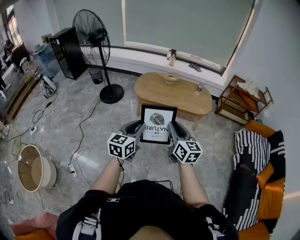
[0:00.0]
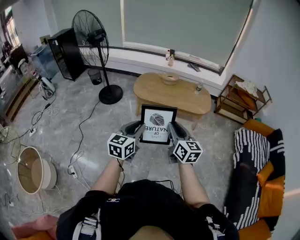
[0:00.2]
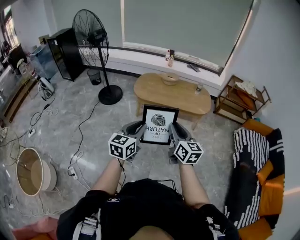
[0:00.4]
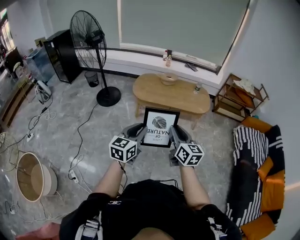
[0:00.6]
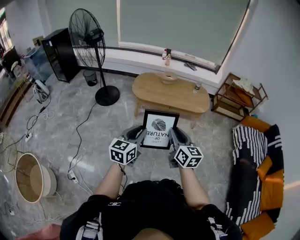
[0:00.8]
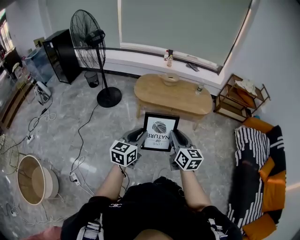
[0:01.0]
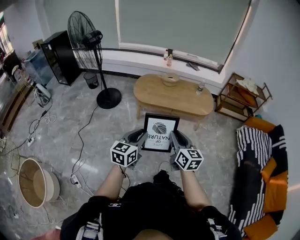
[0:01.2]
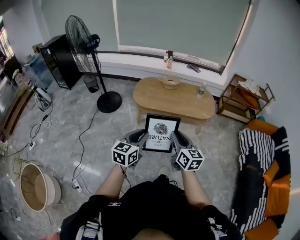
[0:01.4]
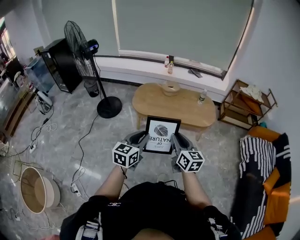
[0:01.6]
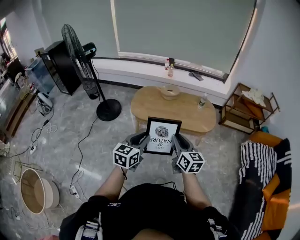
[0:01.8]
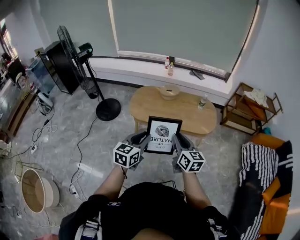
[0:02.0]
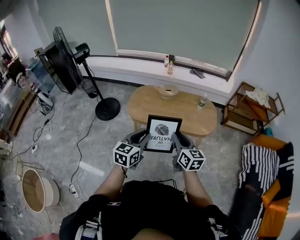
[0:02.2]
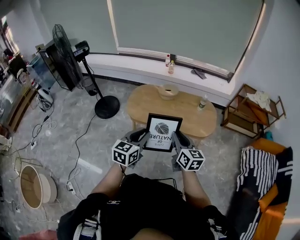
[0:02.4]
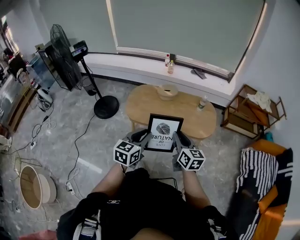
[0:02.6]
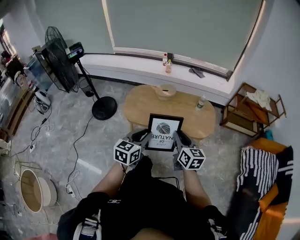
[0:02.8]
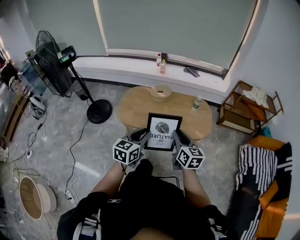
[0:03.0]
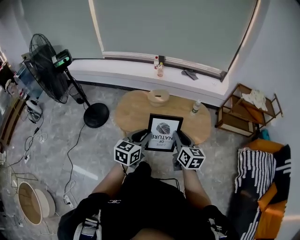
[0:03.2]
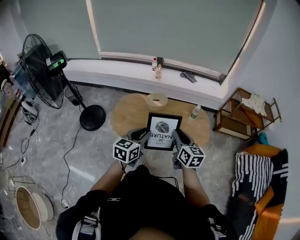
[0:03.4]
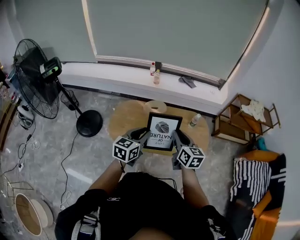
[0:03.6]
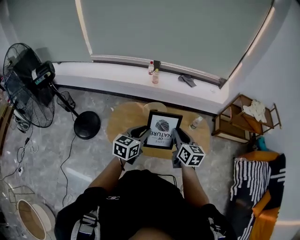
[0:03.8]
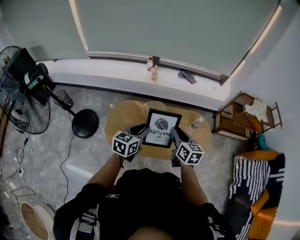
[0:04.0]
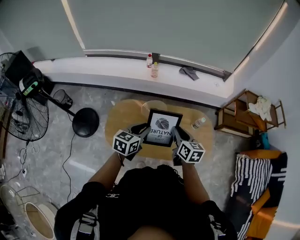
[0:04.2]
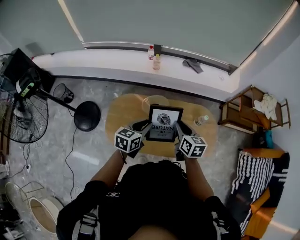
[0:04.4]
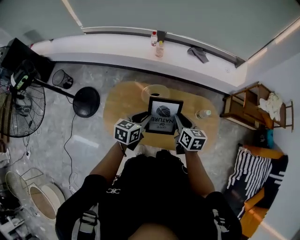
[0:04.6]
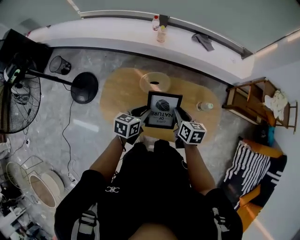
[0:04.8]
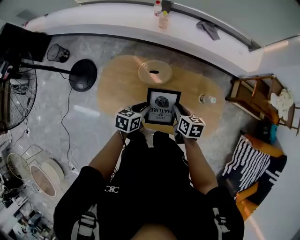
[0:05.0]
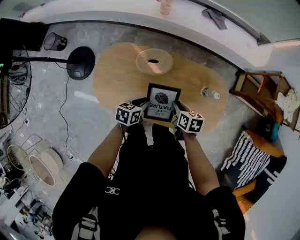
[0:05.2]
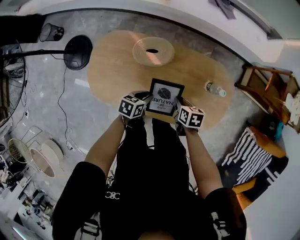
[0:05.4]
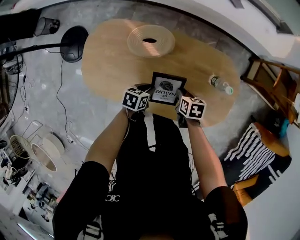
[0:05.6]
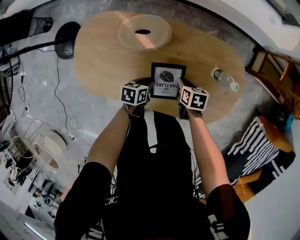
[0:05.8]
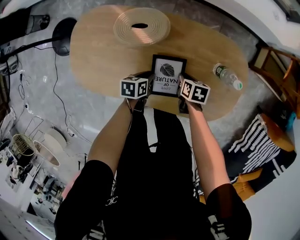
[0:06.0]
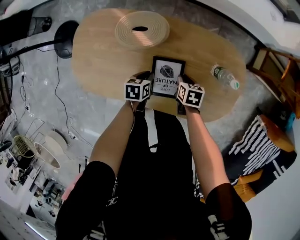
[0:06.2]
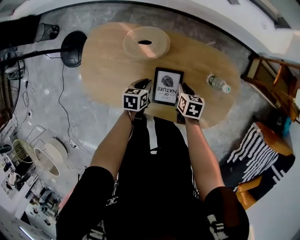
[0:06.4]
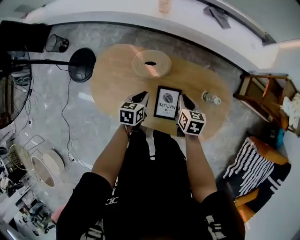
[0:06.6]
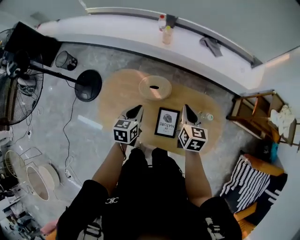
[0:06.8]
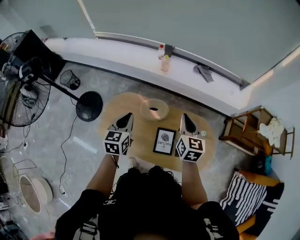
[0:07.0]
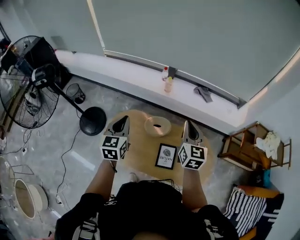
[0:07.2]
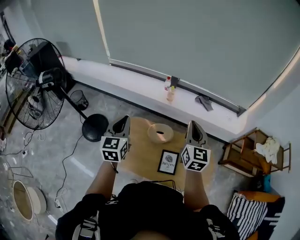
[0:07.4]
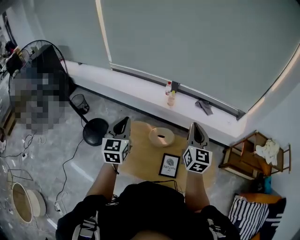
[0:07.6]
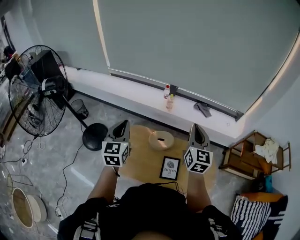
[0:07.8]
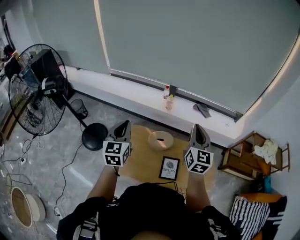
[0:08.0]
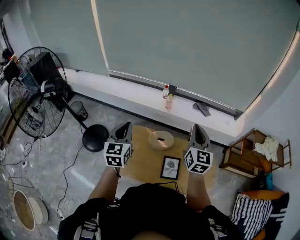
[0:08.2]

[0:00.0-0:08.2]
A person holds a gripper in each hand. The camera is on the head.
0:00.0 to 0:01.6: Both grippers move forward, some 15 cm.
0:01.6 to 0:03.2: The grippers both shift forward and to the right by about 40 cm.
0:03.2 to 0:05.0: Both grippers are carried forward, approximately 50 cm. Both grippers travel together downward, about 25 cm. The left gripper swivels approximately 30 degrees, while the right gripper angles its fingers downward, by approximately 30 degrees.
0:05.0 to 0:06.6: The right gripper goes some 10 cm to the right and forward, and moves roughly 35 cm downward and comes back. The left gripper goes about 5 cm forward, and moves some 35 cm downward and comes back.
0:06.6 to 0:08.2: The right gripper heads upward, covering approximately 50 cm, and points its fingers about 50 degrees further upward. The left gripper moves upward and to the left, approximately 50 cm, and tilts its fingers about 40 degrees upward.

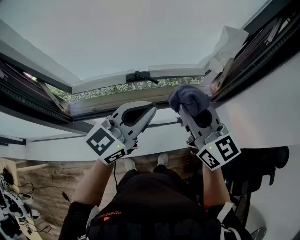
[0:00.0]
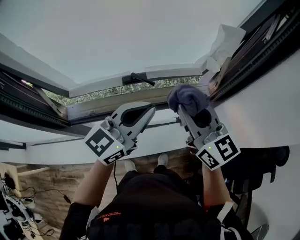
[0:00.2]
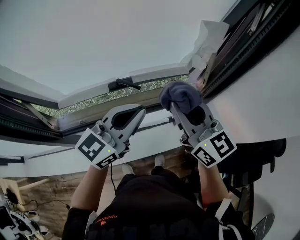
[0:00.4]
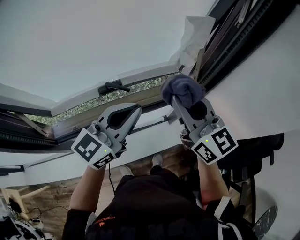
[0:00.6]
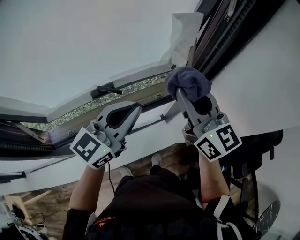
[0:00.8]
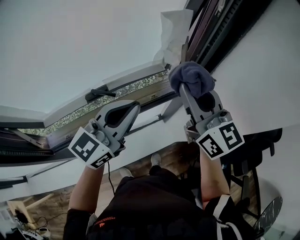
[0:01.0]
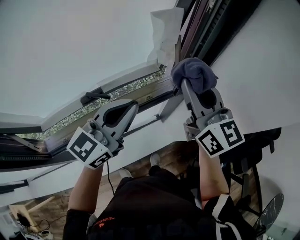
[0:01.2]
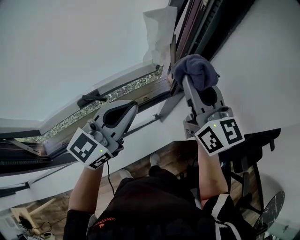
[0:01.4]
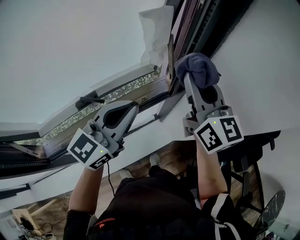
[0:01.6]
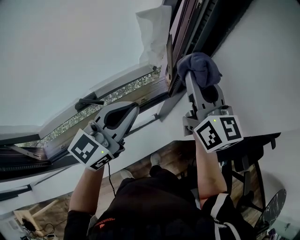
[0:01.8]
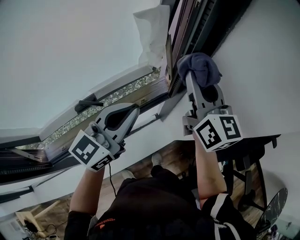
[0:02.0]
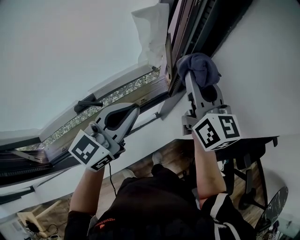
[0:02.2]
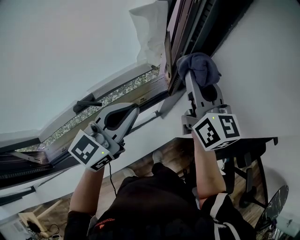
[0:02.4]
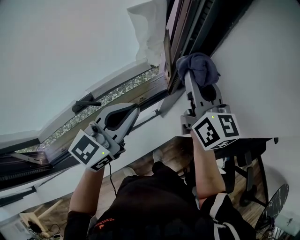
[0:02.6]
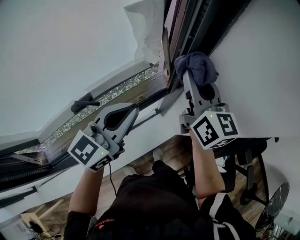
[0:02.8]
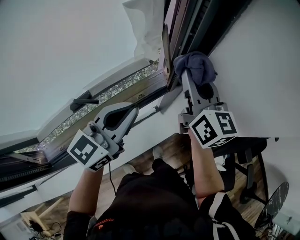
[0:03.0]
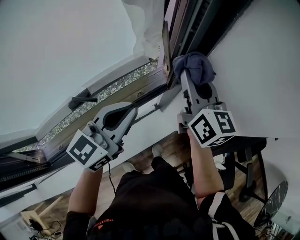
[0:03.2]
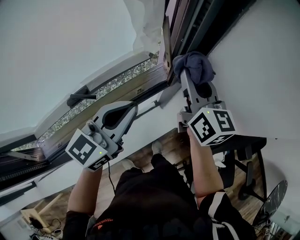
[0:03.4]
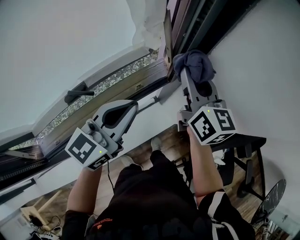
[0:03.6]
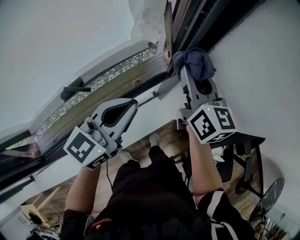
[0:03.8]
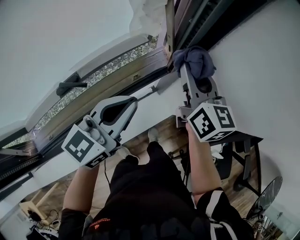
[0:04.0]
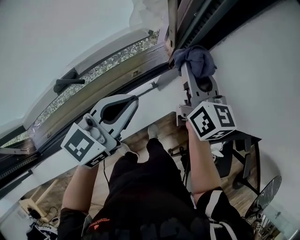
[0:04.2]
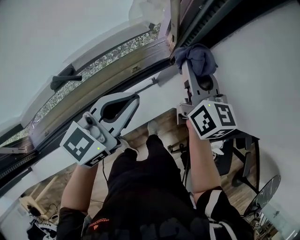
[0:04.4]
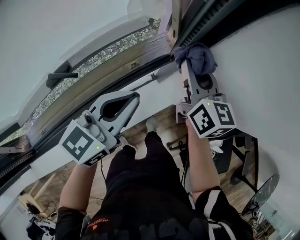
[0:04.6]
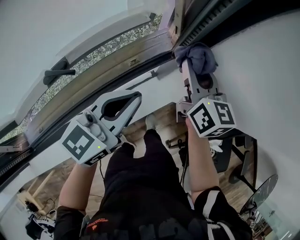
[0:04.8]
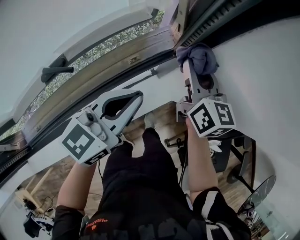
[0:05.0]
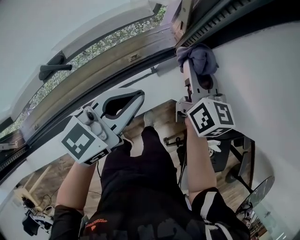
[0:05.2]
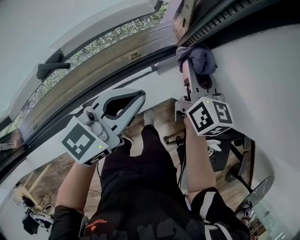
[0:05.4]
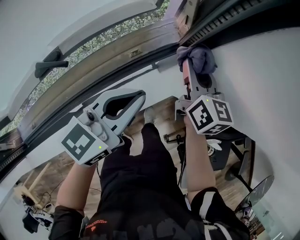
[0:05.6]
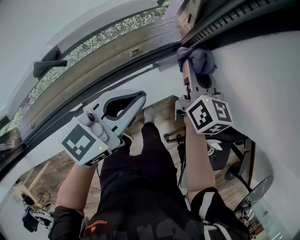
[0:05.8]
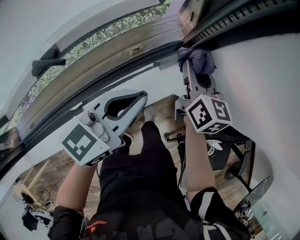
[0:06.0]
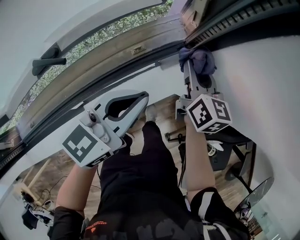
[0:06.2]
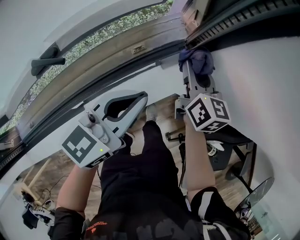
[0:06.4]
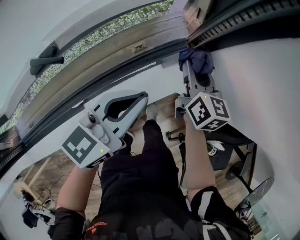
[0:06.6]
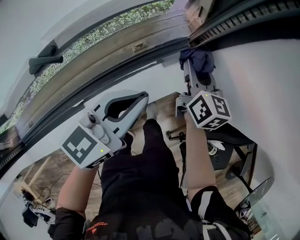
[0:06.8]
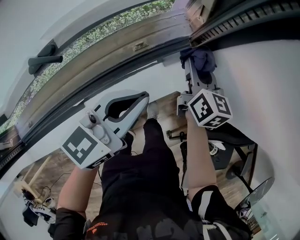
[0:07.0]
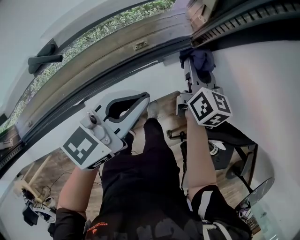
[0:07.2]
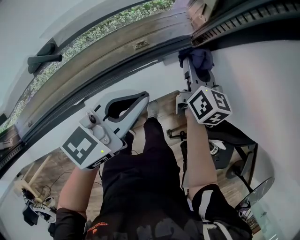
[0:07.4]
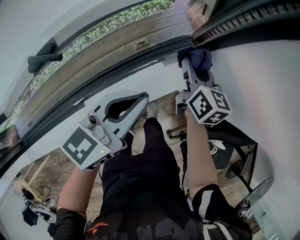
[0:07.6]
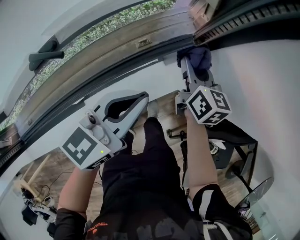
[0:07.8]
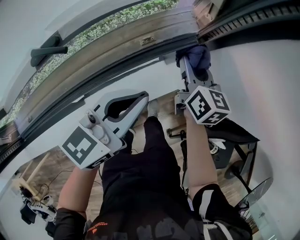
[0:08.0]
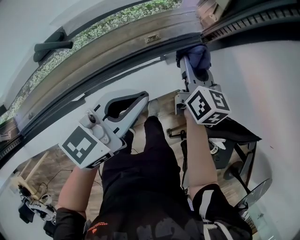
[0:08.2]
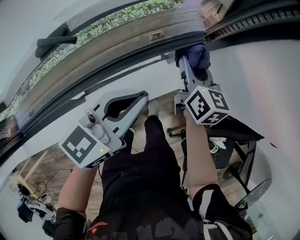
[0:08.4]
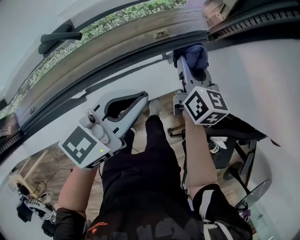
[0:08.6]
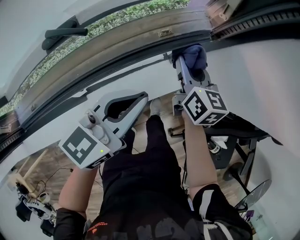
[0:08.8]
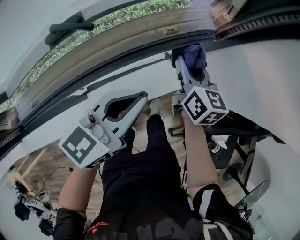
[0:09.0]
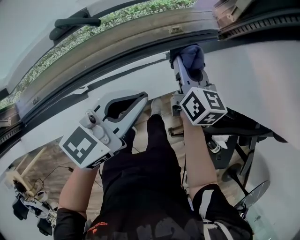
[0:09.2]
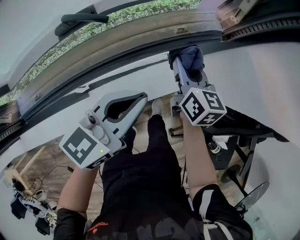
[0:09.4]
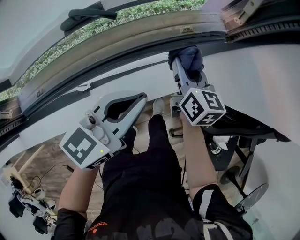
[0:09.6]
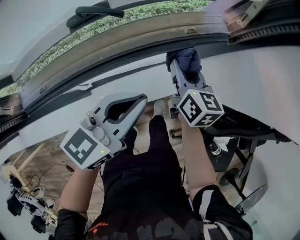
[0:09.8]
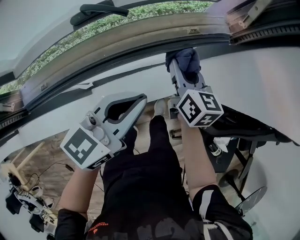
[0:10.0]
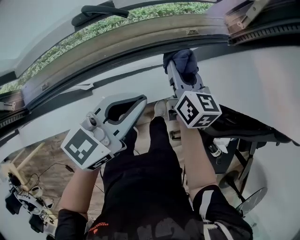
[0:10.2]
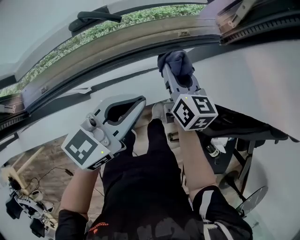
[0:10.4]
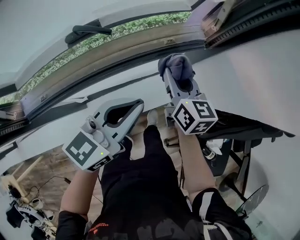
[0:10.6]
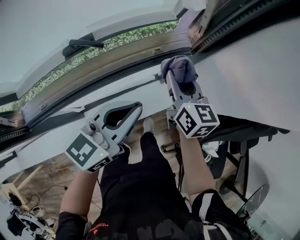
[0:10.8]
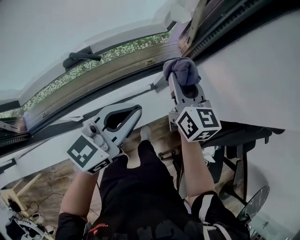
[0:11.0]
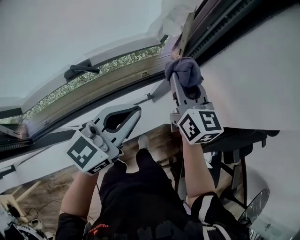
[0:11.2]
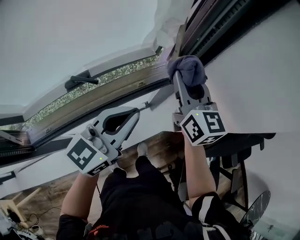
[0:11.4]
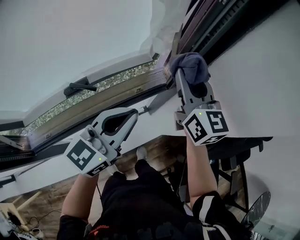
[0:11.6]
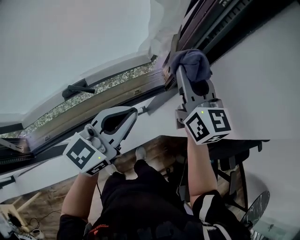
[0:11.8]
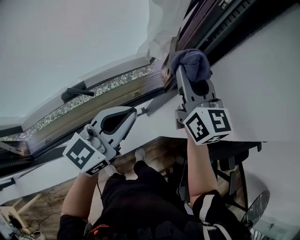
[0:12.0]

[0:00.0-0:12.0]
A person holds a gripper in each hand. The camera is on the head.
0:00.0 to 0:01.6: The grippers both shift to the right and forward by some 20 cm. The right gripper changes its angle by roughly 30 degrees.
0:01.6 to 0:03.0: The right gripper shifts approximately 5 cm downward.
0:03.0 to 0:04.4: Both grippers travel together downward, about 10 cm.
0:04.4 to 0:06.0: The left gripper travels downward by about 10 cm, while the right gripper shifts about 15 cm downward.
0:06.0 to 0:07.6: The right gripper is displaced downward by some 5 cm.
0:07.6 to 0:09.0: The right gripper goes approximately 10 cm to the left and backward. The left gripper is displaced backward and to the left by about 10 cm.
0:09.0 to 0:10.4: The right gripper moves to the left and backward, roughly 10 cm, while the left gripper travels backward by approximately 5 cm.
0:10.4 to 0:12.0: The left gripper goes some 20 cm upward and forward; the right gripper moves upward, approximately 30 cm, and rotates some 30 degrees.

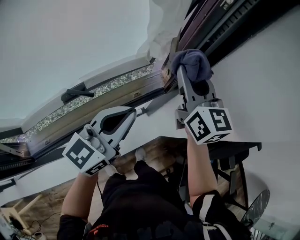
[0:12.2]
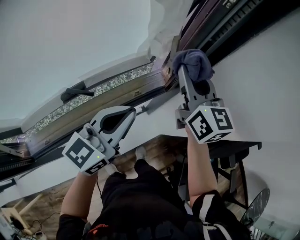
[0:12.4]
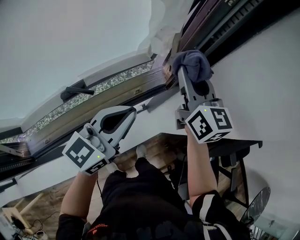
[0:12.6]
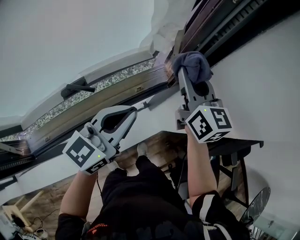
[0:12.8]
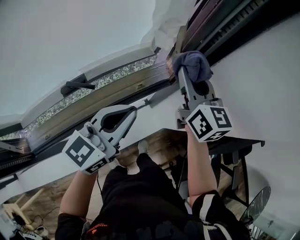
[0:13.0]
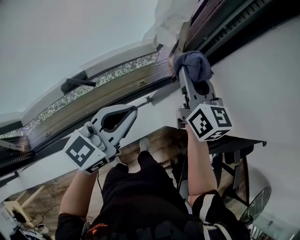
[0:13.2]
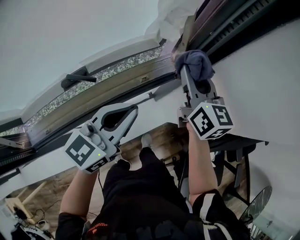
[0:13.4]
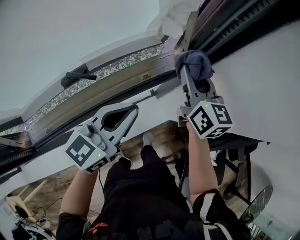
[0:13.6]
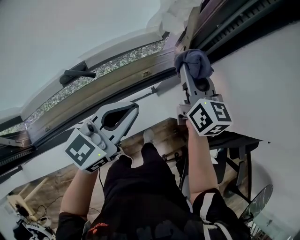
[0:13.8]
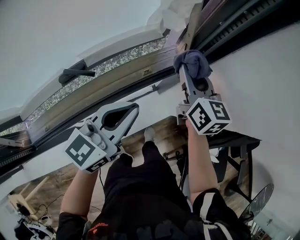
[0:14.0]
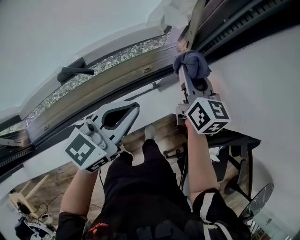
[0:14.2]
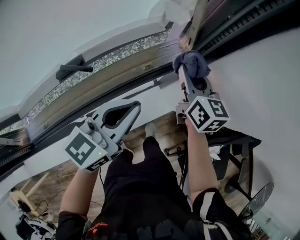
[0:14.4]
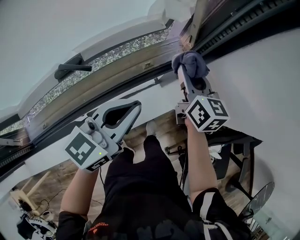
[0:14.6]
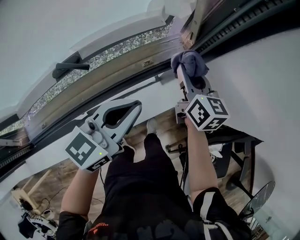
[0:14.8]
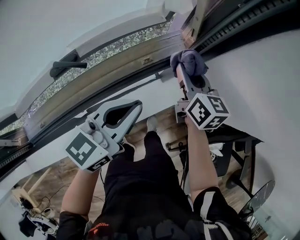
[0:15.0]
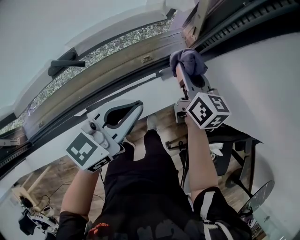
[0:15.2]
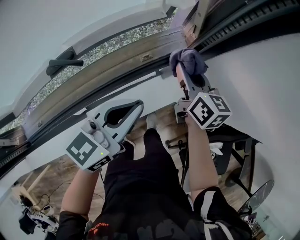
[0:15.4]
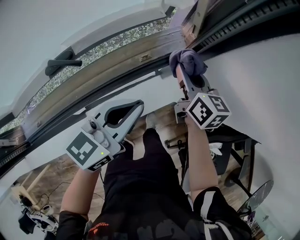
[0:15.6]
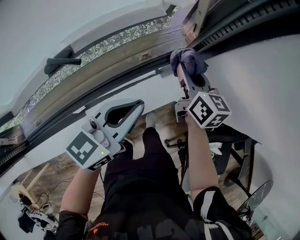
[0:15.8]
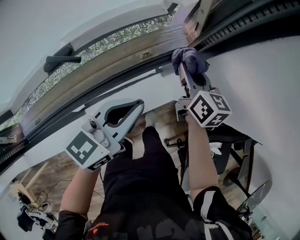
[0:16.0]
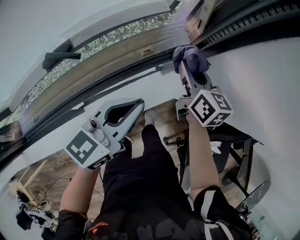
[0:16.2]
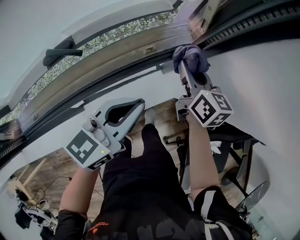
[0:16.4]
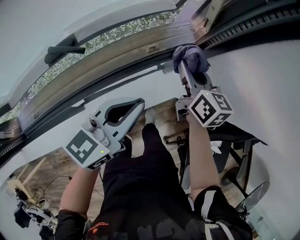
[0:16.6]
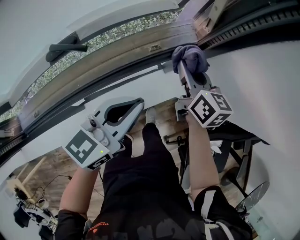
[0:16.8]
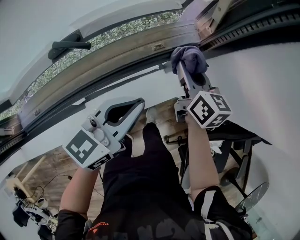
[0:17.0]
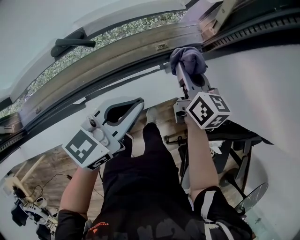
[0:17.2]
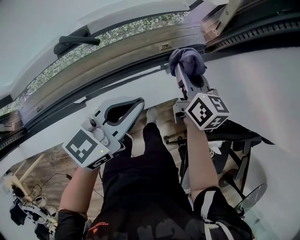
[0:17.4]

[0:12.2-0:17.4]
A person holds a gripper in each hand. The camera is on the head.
0:12.2 to 0:14.0: The right gripper travels downward by about 15 cm. The left gripper heads downward, covering roughly 10 cm.
0:14.0 to 0:15.6: The left gripper travels downward by approximately 5 cm. Meanwhile the right gripper shifts some 10 cm downward.
0:15.6 to 0:17.4: The left gripper changes place by some 5 cm. The right gripper travels to the left by about 5 cm.
